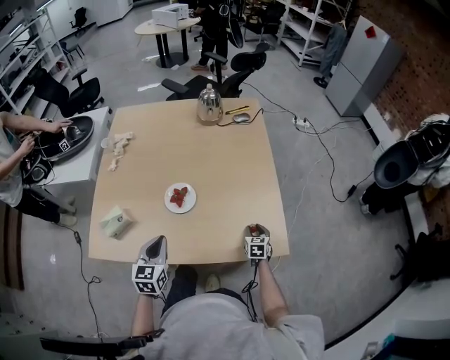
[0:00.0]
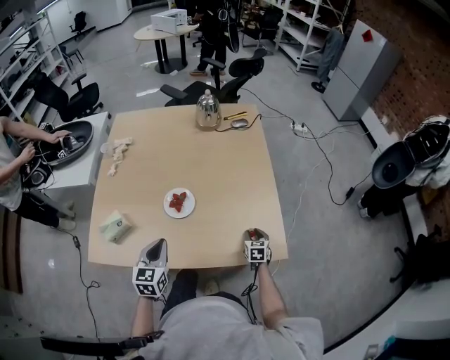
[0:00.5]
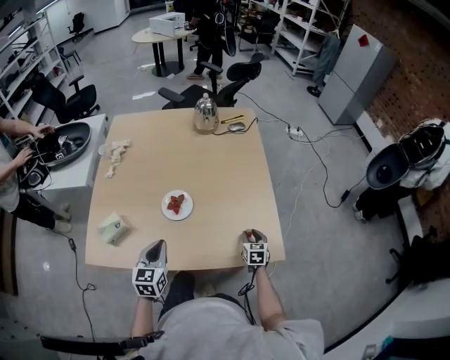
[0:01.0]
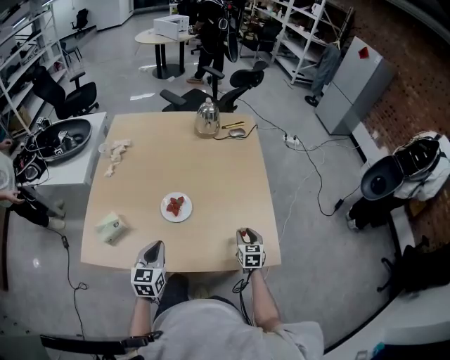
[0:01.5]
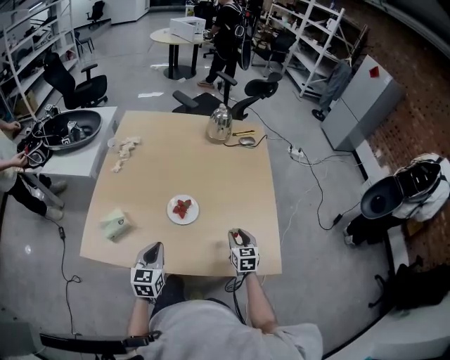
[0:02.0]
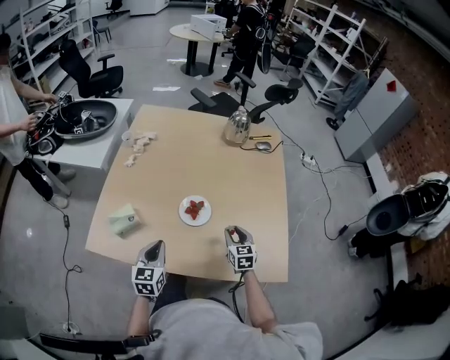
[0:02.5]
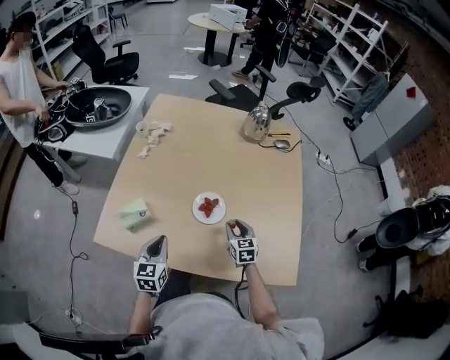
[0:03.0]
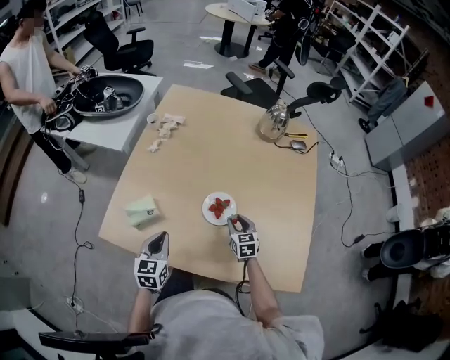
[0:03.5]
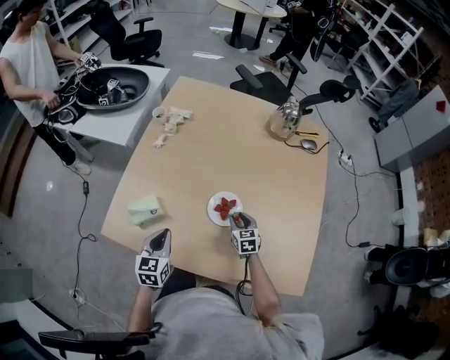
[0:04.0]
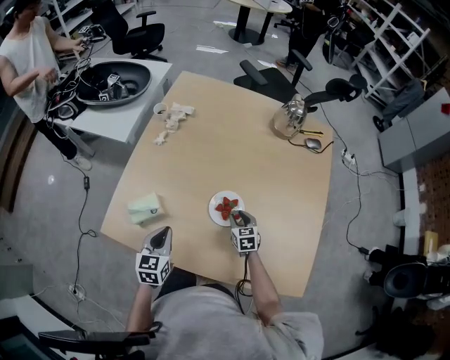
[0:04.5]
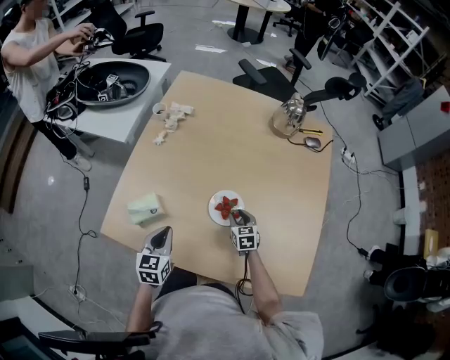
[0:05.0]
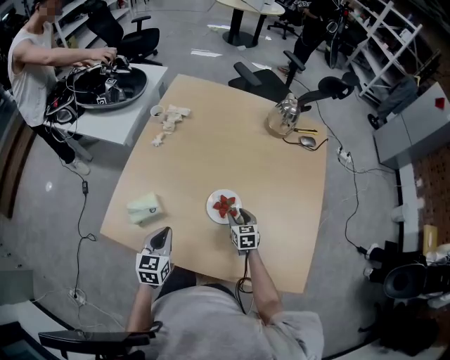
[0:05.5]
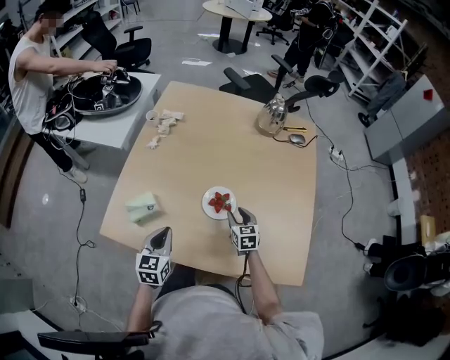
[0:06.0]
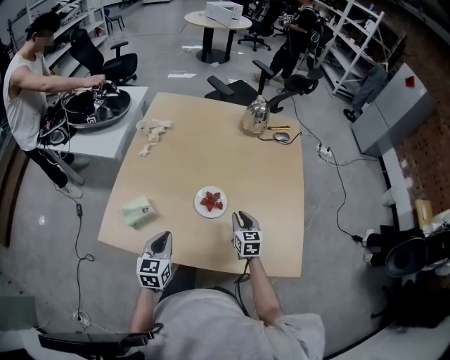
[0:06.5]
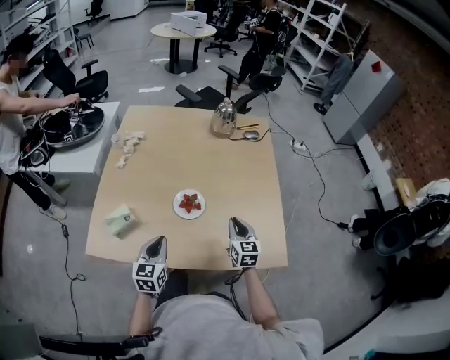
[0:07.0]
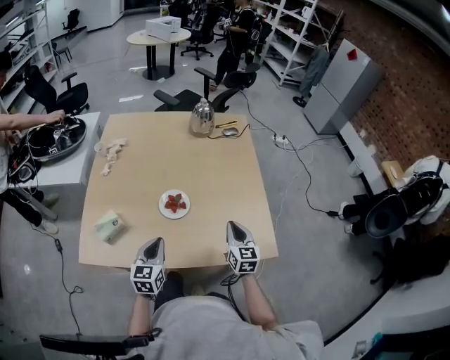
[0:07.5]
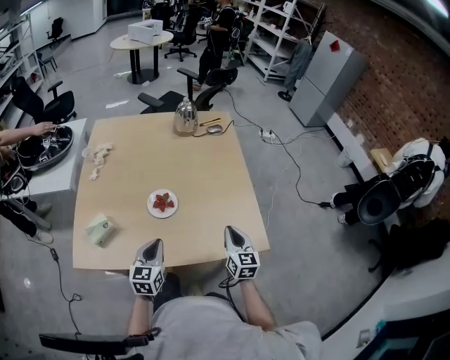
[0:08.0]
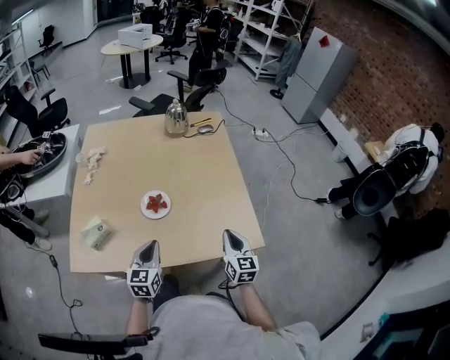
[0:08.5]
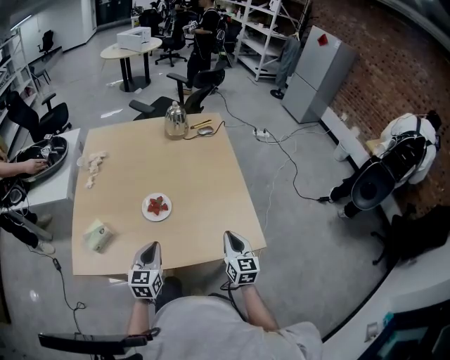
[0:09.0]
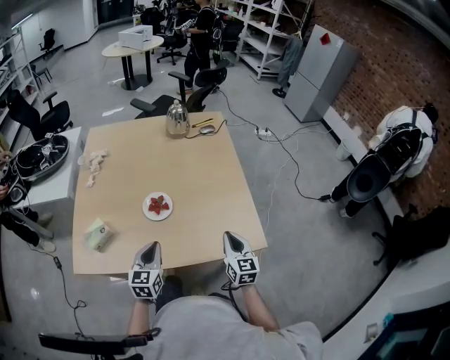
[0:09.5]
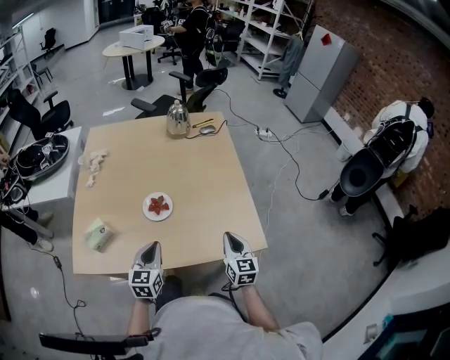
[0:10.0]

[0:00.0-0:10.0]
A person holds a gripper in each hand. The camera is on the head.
0:00.0 to 0:02.0: The right gripper is displaced upward and to the left by roughly 15 cm.
0:02.0 to 0:04.0: The left gripper travels to the left and forward by some 10 cm, while the right gripper moves to the left, forward and downward, approximately 25 cm, and changes its angle by roughly 20 degrees.
0:04.0 to 0:06.0: The grippers make only small movements.
0:06.0 to 0:08.0: The left gripper travels to the right by approximately 15 cm. Meanwhile the right gripper shifts about 30 cm backward, to the right and upward, changes its angle by roughly 30 degrees, and closes.
0:08.0 to 0:10.0: The grippers make only small movements.

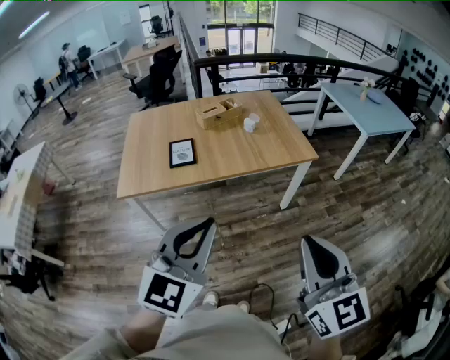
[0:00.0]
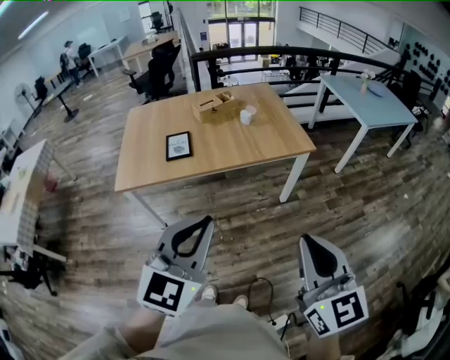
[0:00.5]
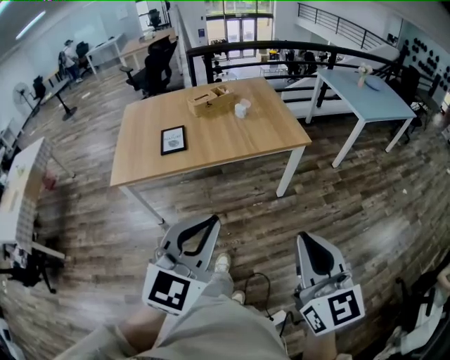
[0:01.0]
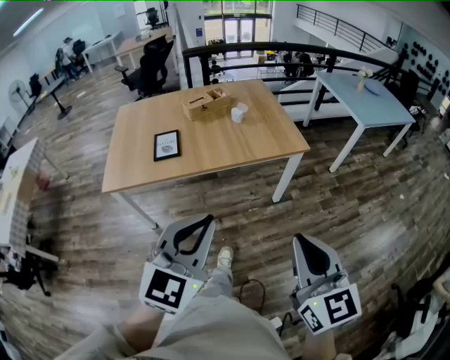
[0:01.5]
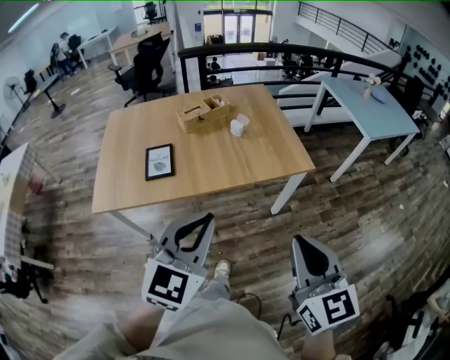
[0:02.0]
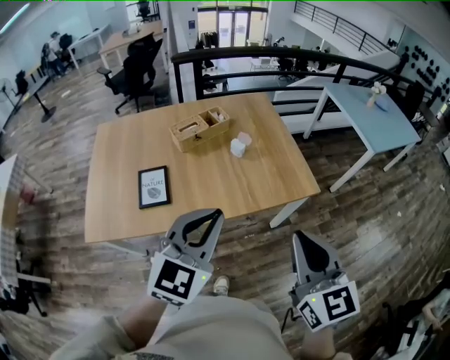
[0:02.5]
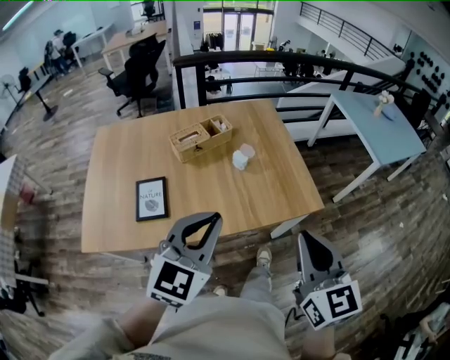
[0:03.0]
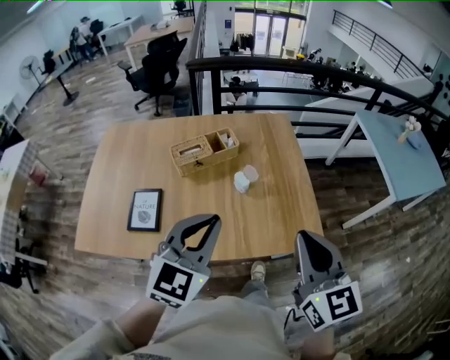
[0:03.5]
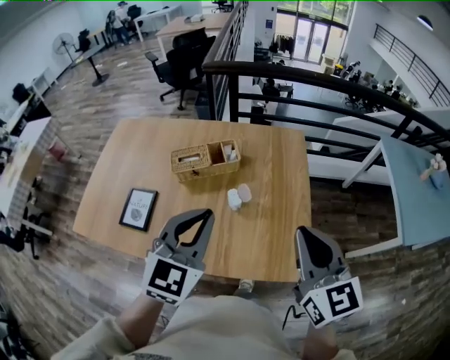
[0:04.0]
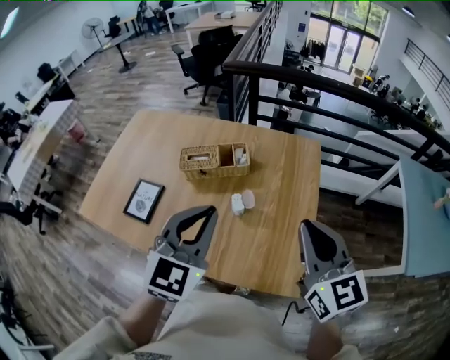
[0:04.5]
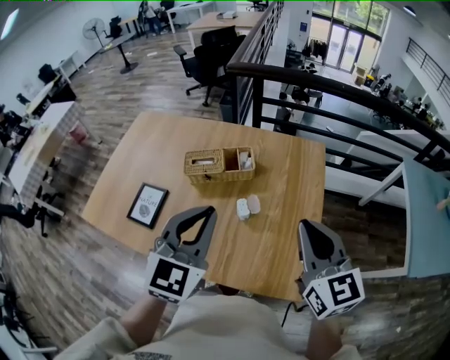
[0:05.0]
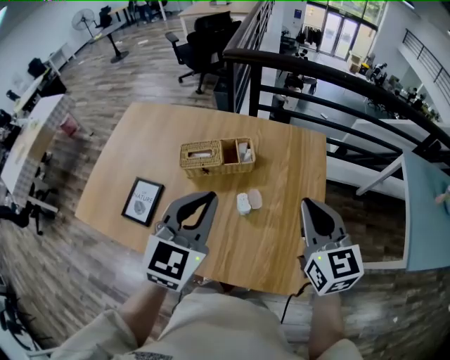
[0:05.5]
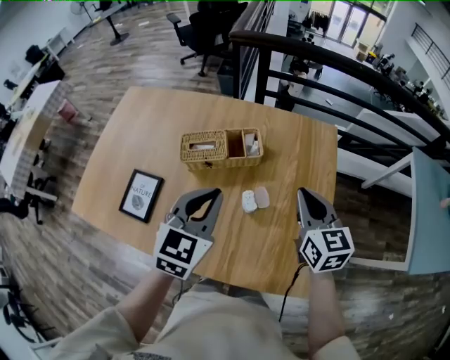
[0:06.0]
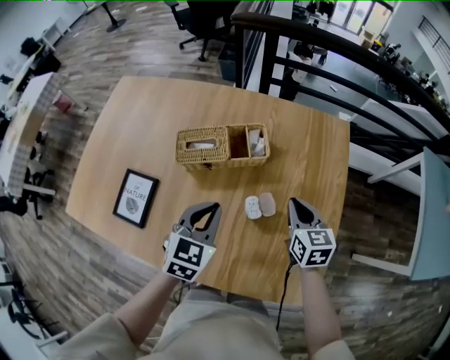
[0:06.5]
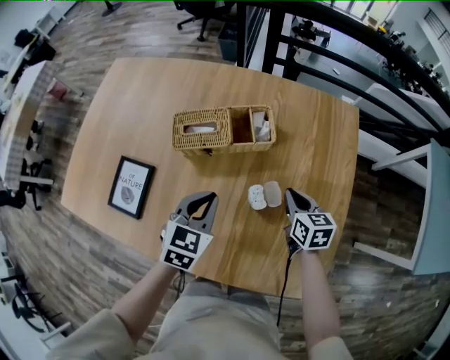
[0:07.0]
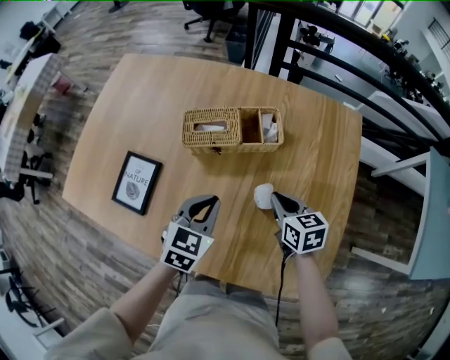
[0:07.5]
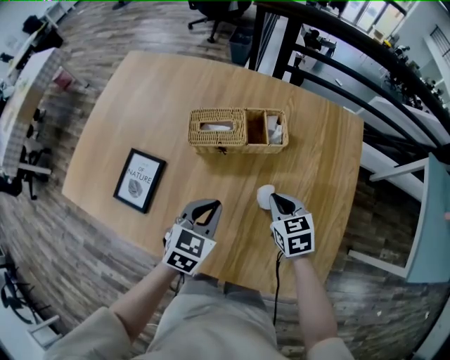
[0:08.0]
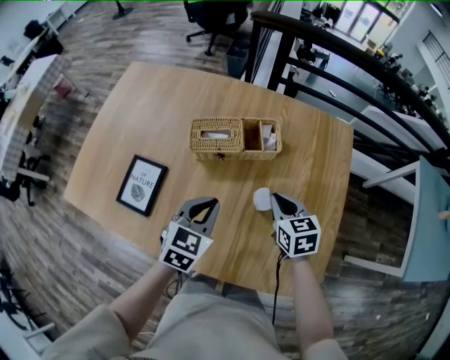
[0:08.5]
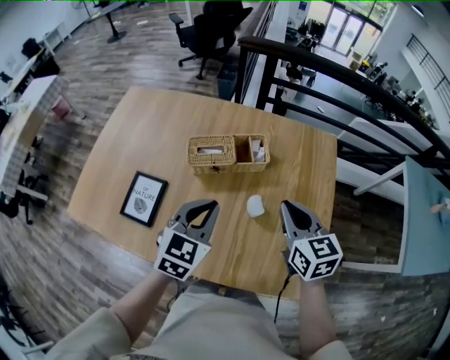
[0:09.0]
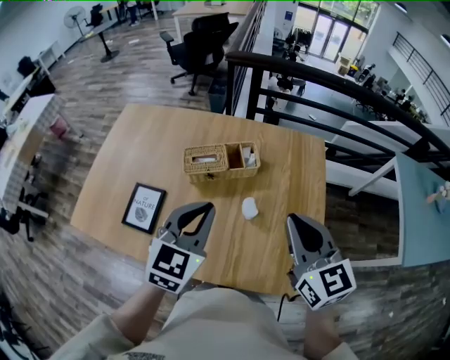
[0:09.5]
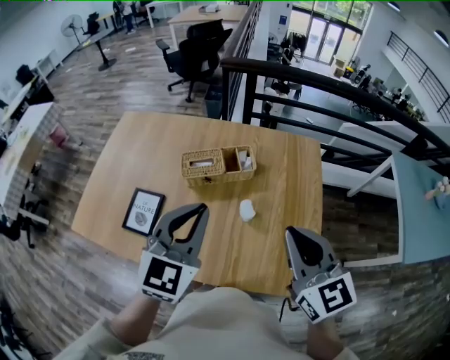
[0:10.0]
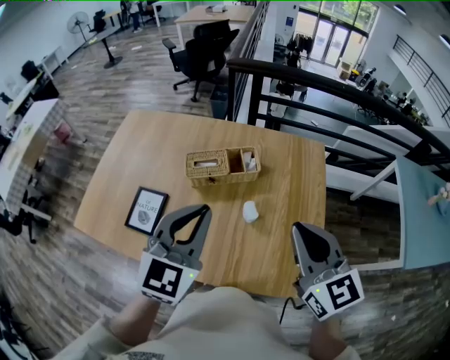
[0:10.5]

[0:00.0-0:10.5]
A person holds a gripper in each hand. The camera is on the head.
0:00.0 to 0:02.0: The grippers both shift forward by some 20 cm.
0:02.0 to 0:04.0: The two grippers travel together, forward, approximately 50 cm. The right gripper rotates about 20 degrees. The left gripper swivels approximately 20 degrees.
0:04.0 to 0:06.5: Both grippers move downward and forward, roughly 35 cm. The right gripper swivels approximately 20 degrees; the left gripper changes its angle by roughly 20 degrees.
0:06.5 to 0:08.5: The left gripper moves to the left, some 5 cm, while the right gripper heads to the left, covering some 10 cm.
0:08.5 to 0:10.5: The right gripper heads upward and backward, covering roughly 35 cm, and swivels about 30 degrees; the left gripper moves upward, some 25 cm, and changes its angle by about 30 degrees.

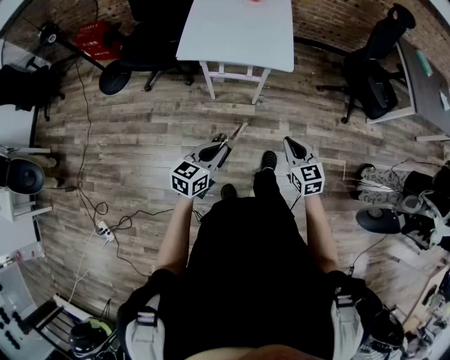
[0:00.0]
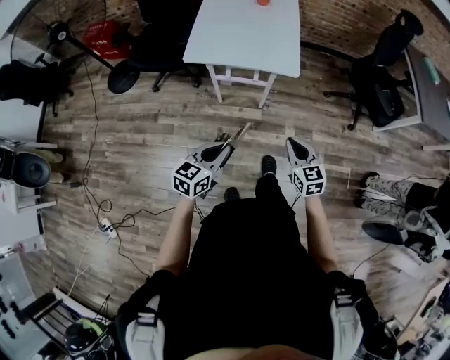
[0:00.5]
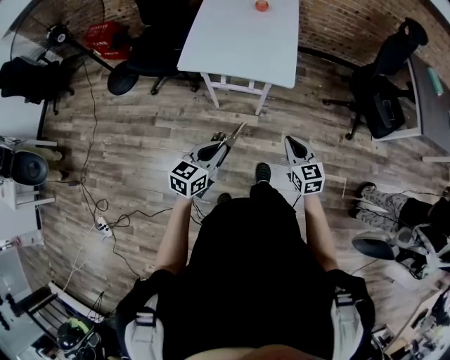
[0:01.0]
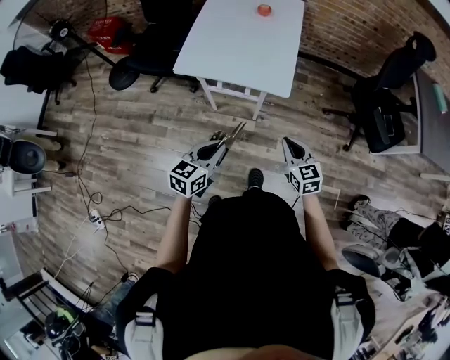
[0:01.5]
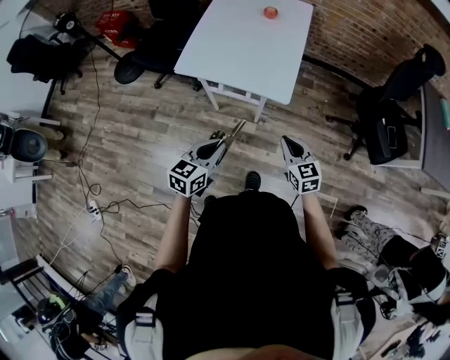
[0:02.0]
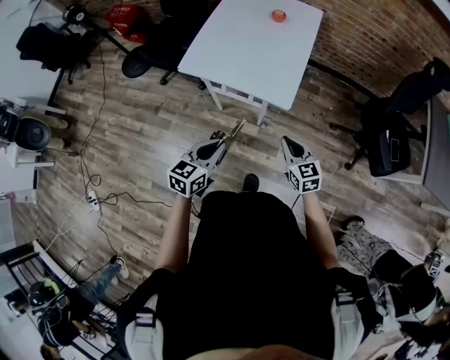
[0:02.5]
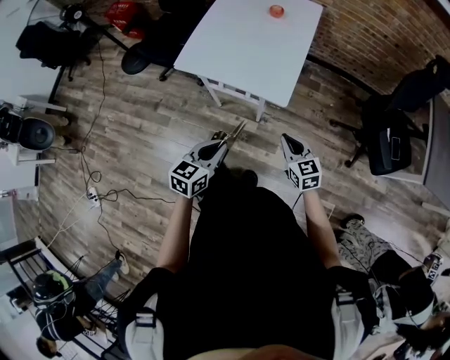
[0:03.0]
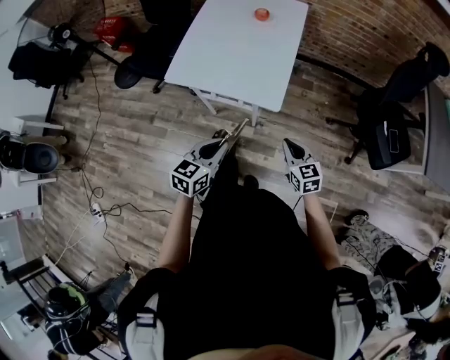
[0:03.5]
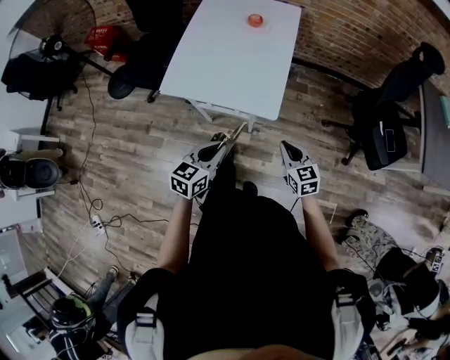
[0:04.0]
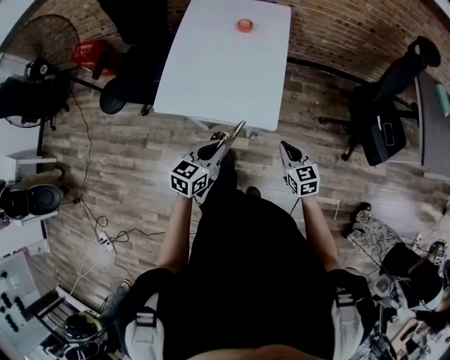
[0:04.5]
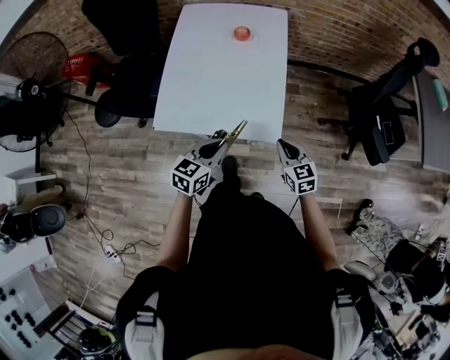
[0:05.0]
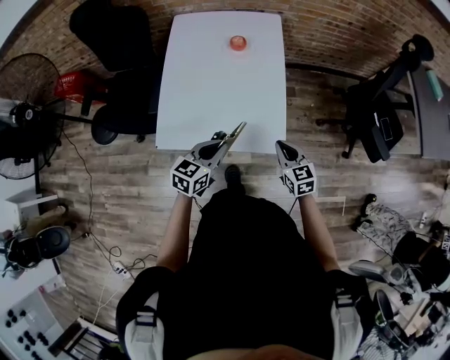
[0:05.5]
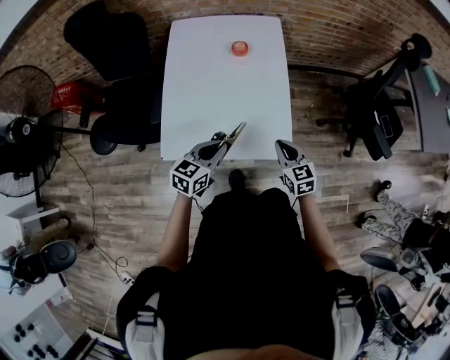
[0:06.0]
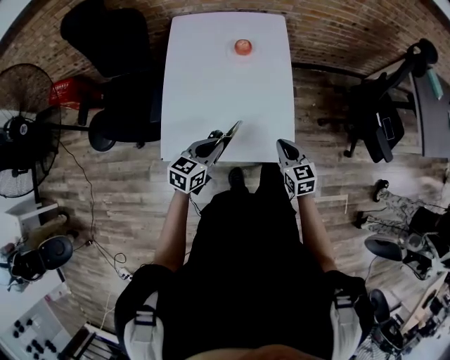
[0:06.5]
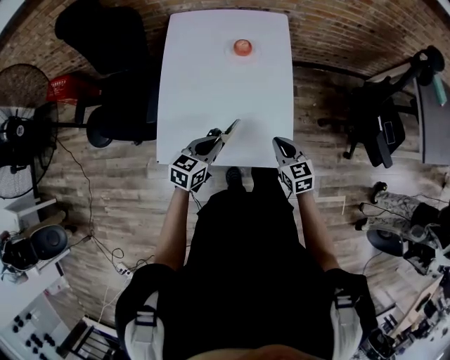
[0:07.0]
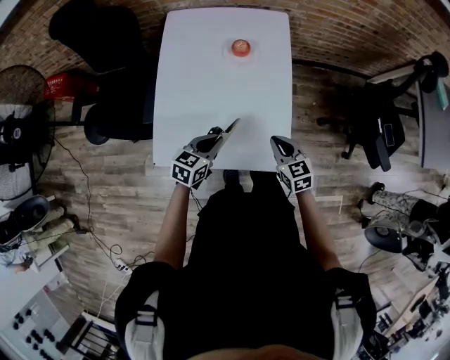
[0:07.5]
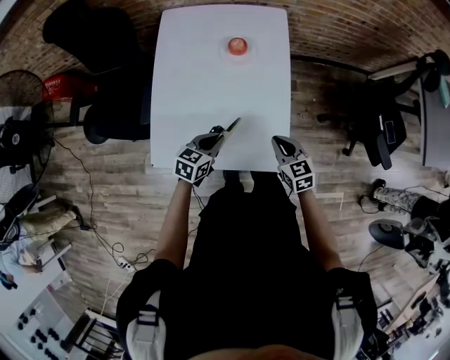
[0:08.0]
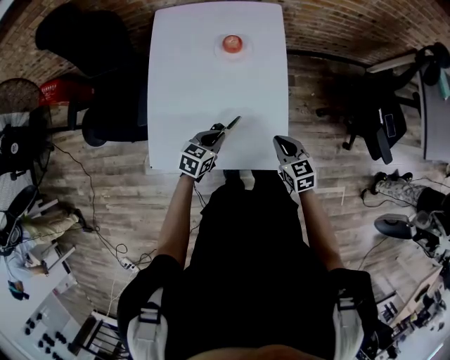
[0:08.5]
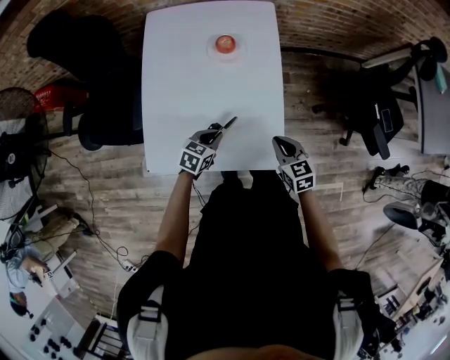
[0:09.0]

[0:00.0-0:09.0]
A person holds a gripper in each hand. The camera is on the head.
0:00.0 to 0:02.0: The grippers both shift forward and to the right by roughly 20 cm.
0:02.0 to 0:04.5: The two grippers go about 15 cm forward.
0:04.5 to 0:07.0: The two grippers go approximately 25 cm forward and to the left.
0:07.0 to 0:09.0: The right gripper moves about 5 cm. Meanwhile the left gripper travels downward and forward by roughly 15 cm.
